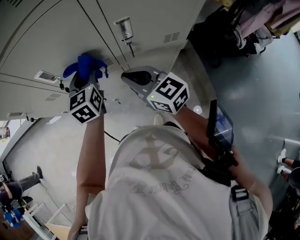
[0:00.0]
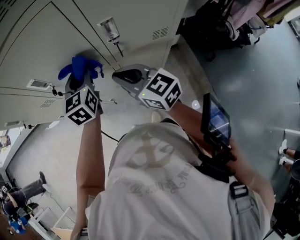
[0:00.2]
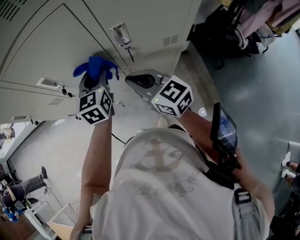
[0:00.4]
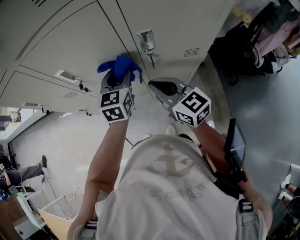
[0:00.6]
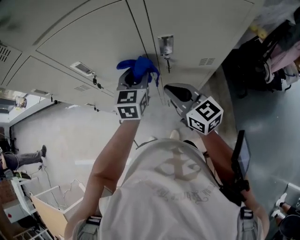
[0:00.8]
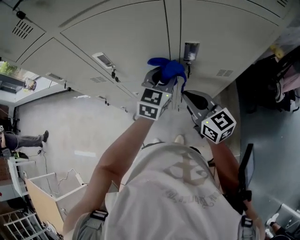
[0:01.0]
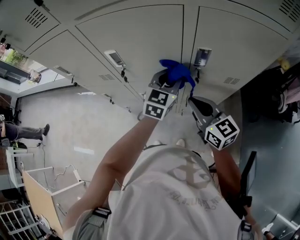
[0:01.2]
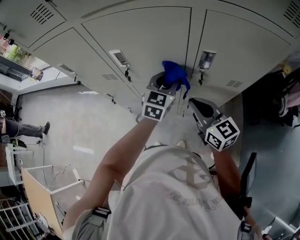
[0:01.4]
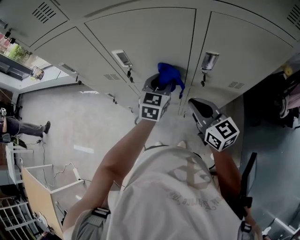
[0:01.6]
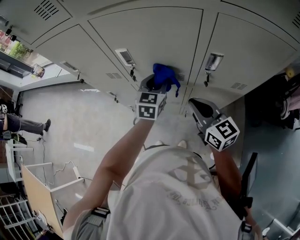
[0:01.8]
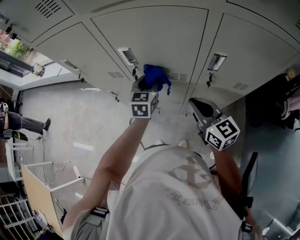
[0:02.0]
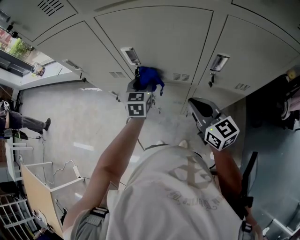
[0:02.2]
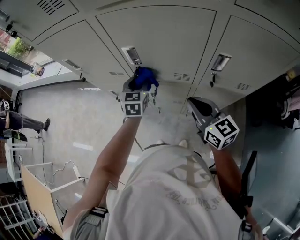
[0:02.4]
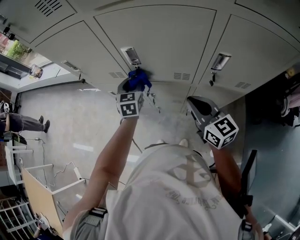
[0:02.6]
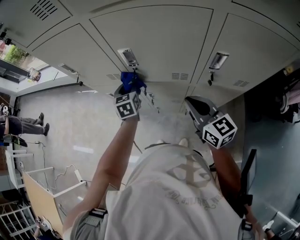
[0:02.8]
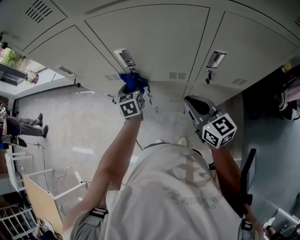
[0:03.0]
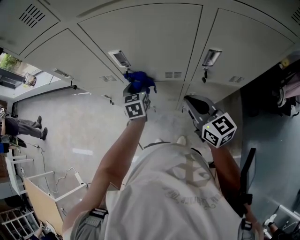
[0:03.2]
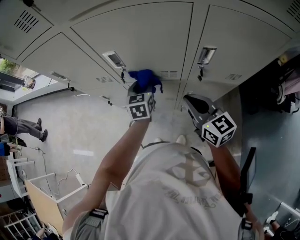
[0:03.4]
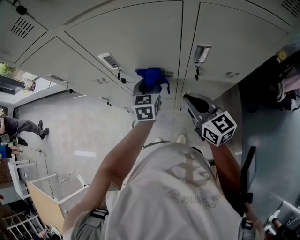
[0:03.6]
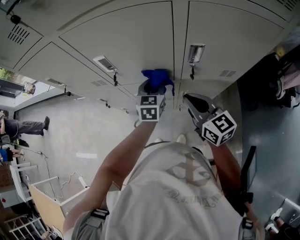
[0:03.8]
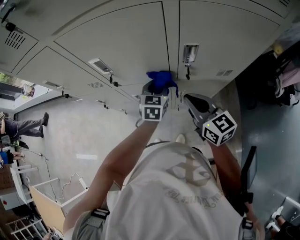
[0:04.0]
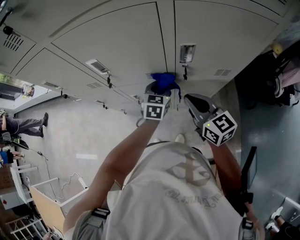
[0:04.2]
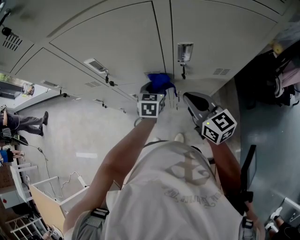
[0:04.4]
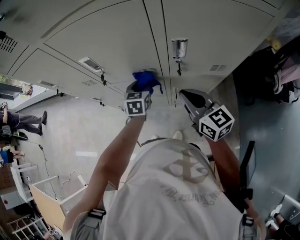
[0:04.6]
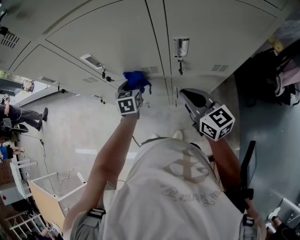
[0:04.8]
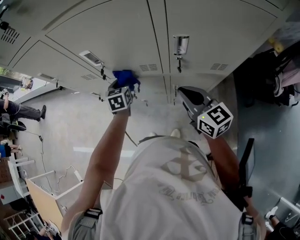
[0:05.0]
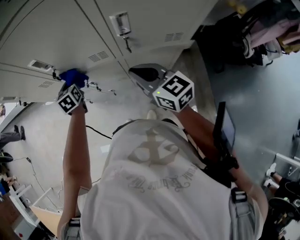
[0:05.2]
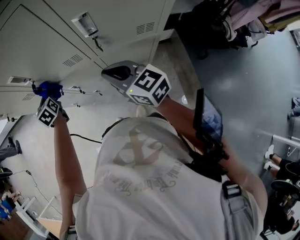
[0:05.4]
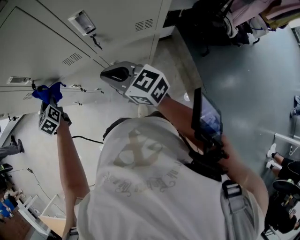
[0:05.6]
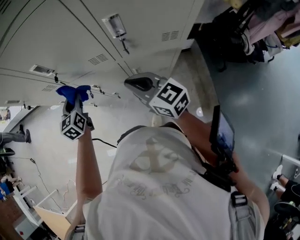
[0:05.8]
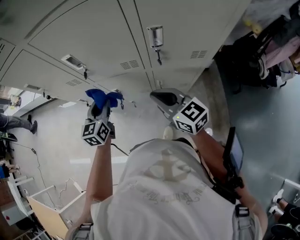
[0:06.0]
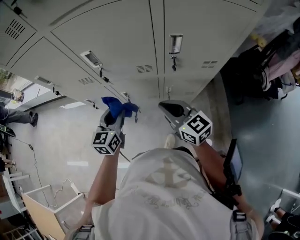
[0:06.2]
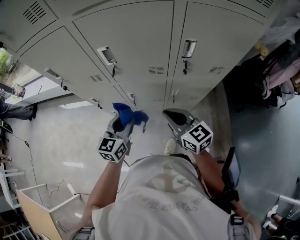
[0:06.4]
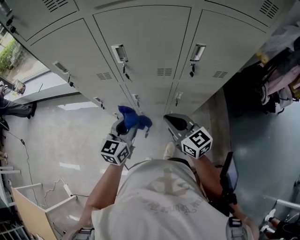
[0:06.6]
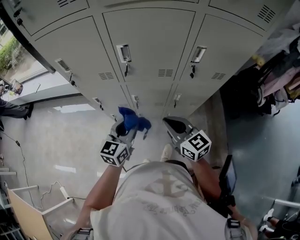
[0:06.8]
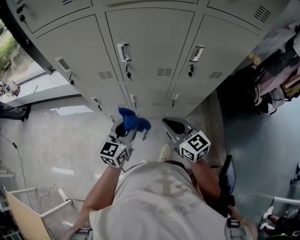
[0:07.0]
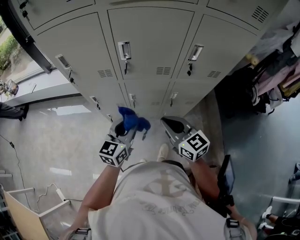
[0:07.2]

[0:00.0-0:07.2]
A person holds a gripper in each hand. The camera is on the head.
0.0 to 1.4 s: The left gripper travels to the right by approximately 5 cm.
1.4 to 2.8 s: The left gripper travels to the left by approximately 25 cm, and changes its angle by roughly 40 degrees. Meanwhile the right gripper moves to the left, some 5 cm.
2.8 to 4.4 s: The left gripper moves to the right, about 25 cm, and turns by some 30 degrees. The right gripper heads to the right, covering approximately 10 cm.
4.4 to 5.8 s: The left gripper moves to the left, about 20 cm, and swivels some 20 degrees; the right gripper changes place by roughly 5 cm.
5.8 to 7.2 s: The right gripper moves to the left and backward, roughly 15 cm; the left gripper heads backward, covering roughly 15 cm, and turns by approximately 30 degrees.

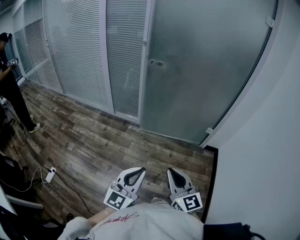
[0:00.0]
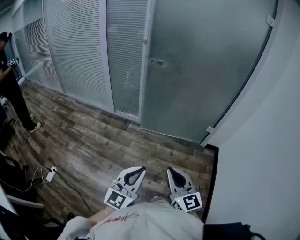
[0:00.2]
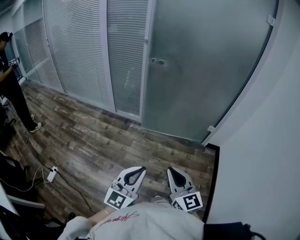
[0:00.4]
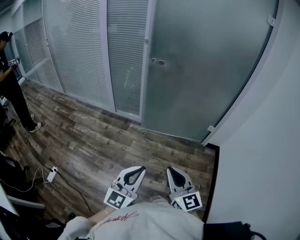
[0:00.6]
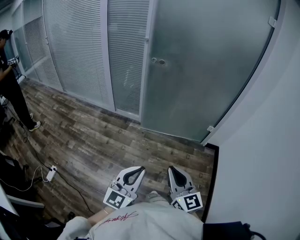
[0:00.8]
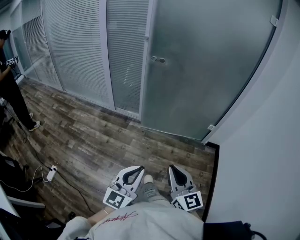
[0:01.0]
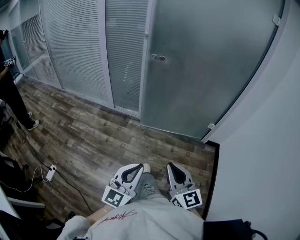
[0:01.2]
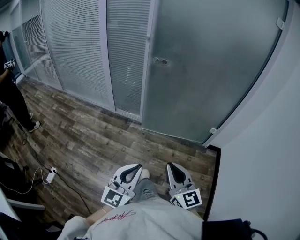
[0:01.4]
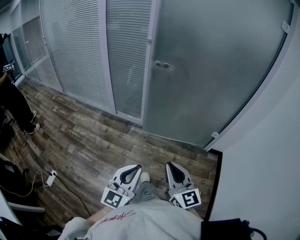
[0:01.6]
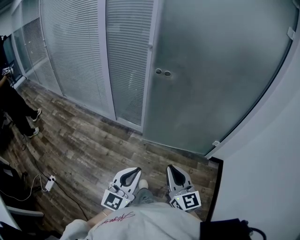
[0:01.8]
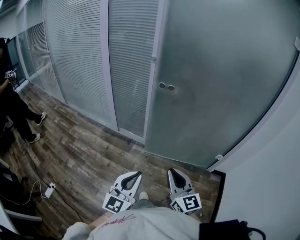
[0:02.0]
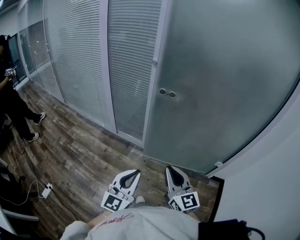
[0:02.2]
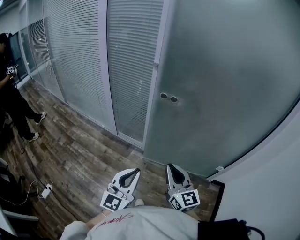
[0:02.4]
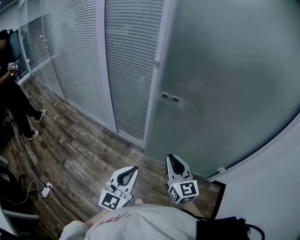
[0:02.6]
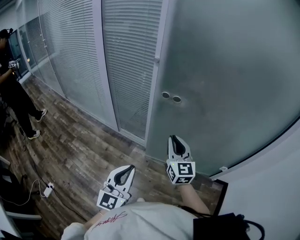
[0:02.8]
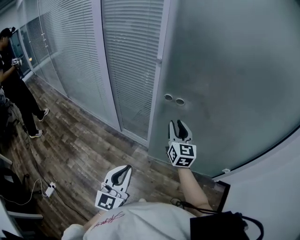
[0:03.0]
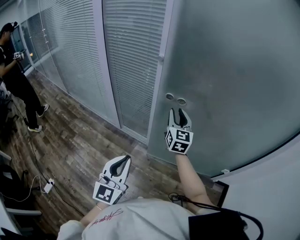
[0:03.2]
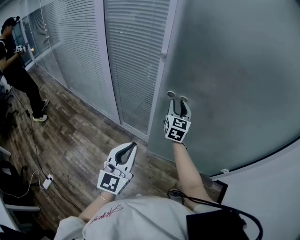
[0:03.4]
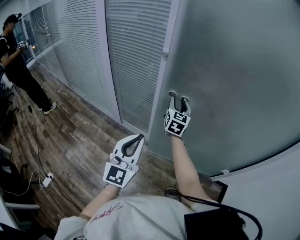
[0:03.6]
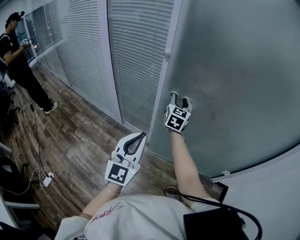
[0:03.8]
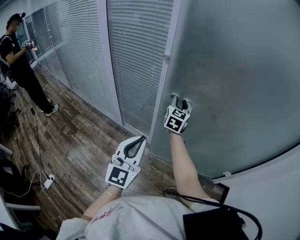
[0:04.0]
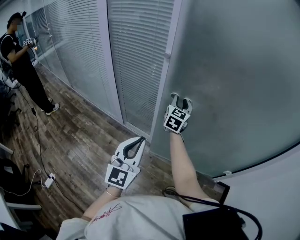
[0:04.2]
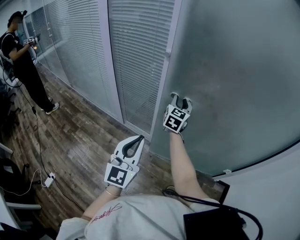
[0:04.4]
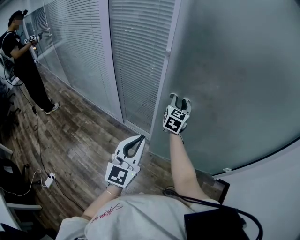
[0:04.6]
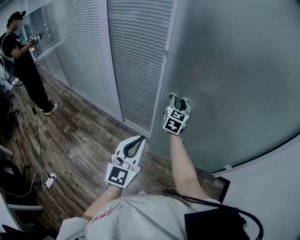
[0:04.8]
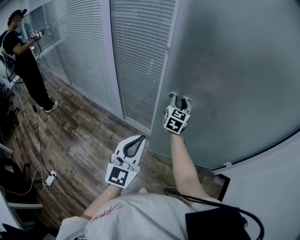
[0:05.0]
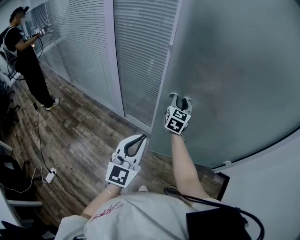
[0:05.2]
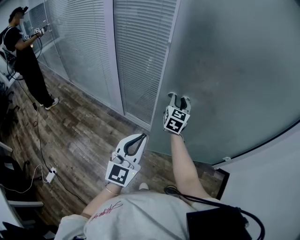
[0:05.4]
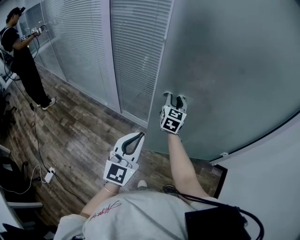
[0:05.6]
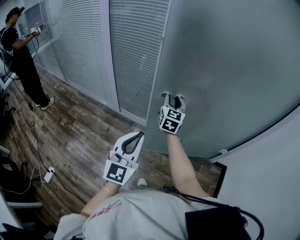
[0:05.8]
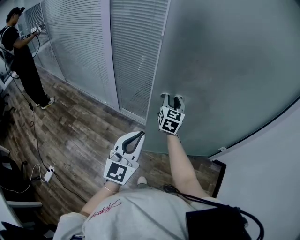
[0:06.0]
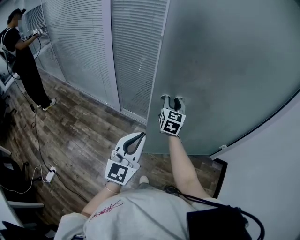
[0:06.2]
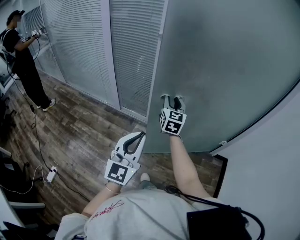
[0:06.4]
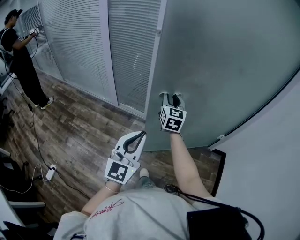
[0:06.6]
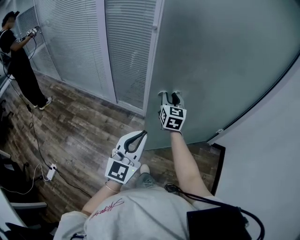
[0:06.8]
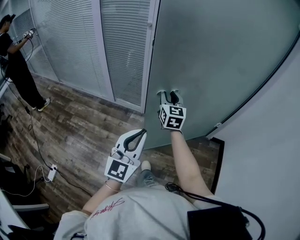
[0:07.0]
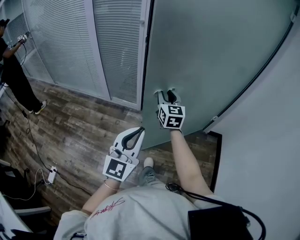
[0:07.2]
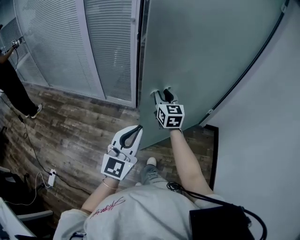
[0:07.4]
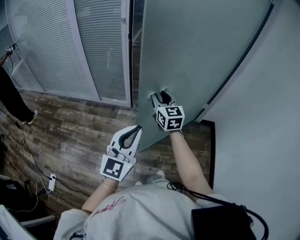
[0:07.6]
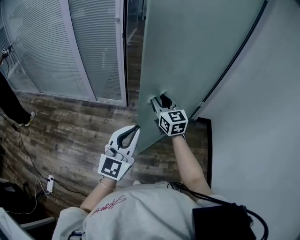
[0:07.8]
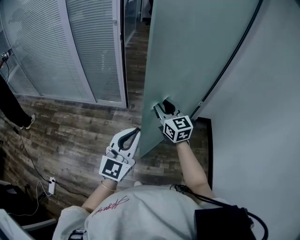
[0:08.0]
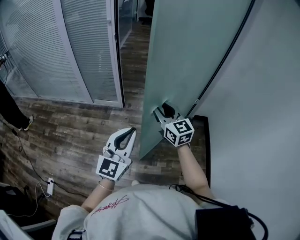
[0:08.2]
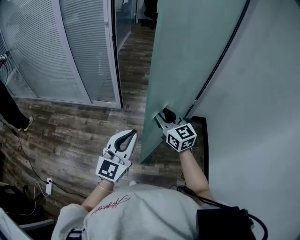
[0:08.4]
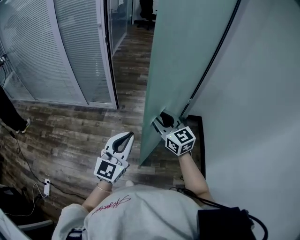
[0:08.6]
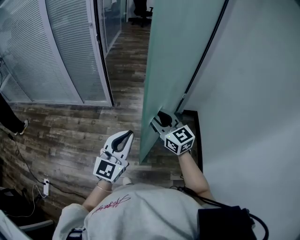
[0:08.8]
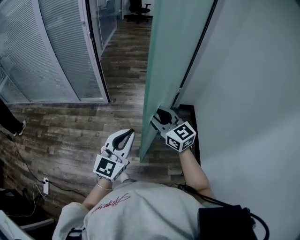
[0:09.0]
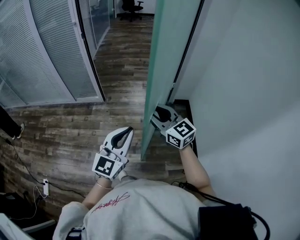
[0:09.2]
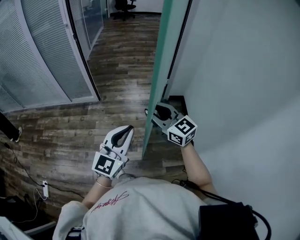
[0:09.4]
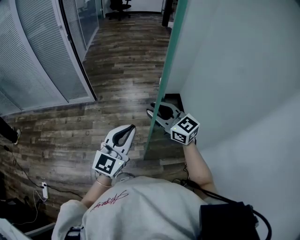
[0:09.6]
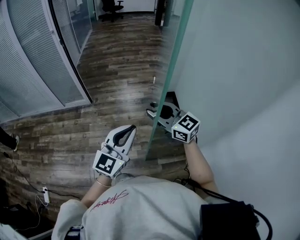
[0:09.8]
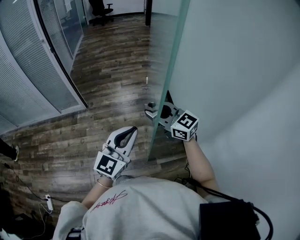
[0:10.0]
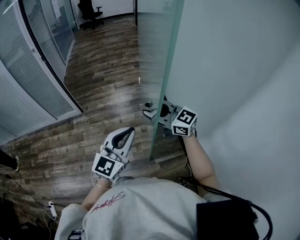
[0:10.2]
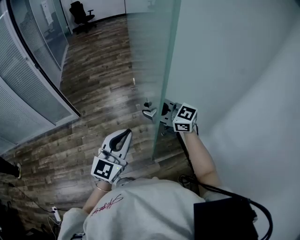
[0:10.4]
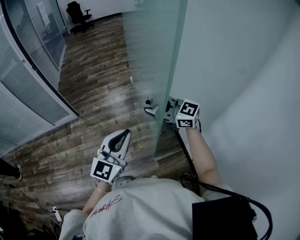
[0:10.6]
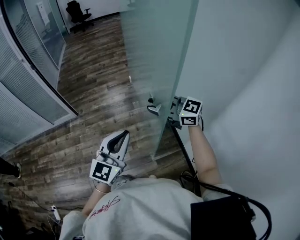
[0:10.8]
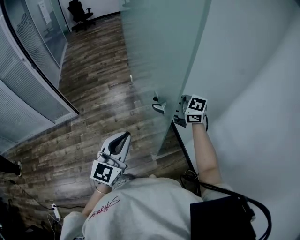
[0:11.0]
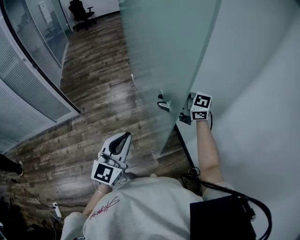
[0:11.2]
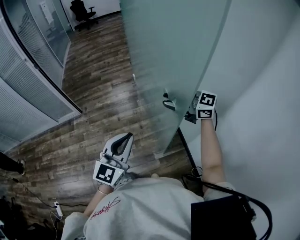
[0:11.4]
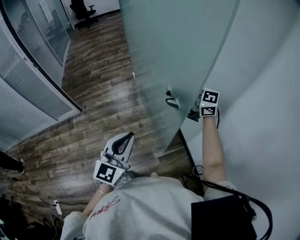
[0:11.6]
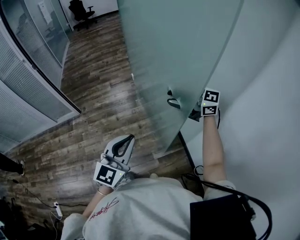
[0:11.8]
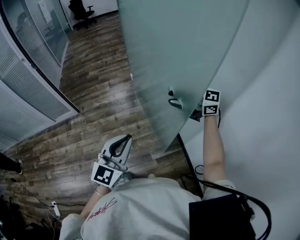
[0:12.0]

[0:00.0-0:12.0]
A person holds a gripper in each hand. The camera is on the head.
0.0 to 1.6 s: The two grippers go roughly 10 cm forward.
1.6 to 3.0 s: The left gripper goes some 30 cm forward, and swivels roughly 30 degrees. Meanwhile the right gripper heads forward, covering about 50 cm, and opens.
3.0 to 4.4 s: Both grippers travel together forward, about 10 cm.
4.4 to 6.0 s: Both grippers move backward, approximately 15 cm.
6.0 to 7.6 s: The left gripper travels backward and to the right by some 20 cm. Meanwhile the right gripper moves backward, some 25 cm.
7.6 to 9.0 s: The right gripper travels backward and to the right by some 30 cm; the left gripper heads to the right and backward, covering approximately 20 cm.
9.0 to 10.4 s: The right gripper heads to the right and backward, covering about 25 cm; the left gripper moves to the right, about 20 cm.
10.4 to 12.0 s: The right gripper heads to the right, covering about 15 cm. Meanwhile the left gripper ends up some 5 cm from where it was.

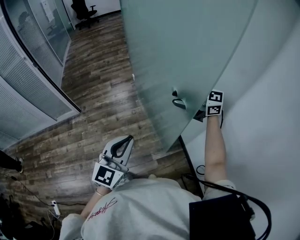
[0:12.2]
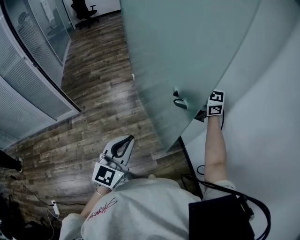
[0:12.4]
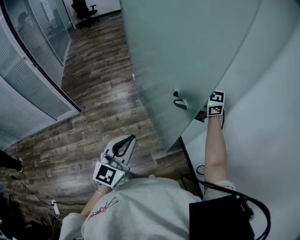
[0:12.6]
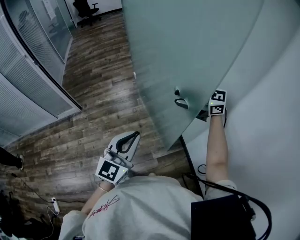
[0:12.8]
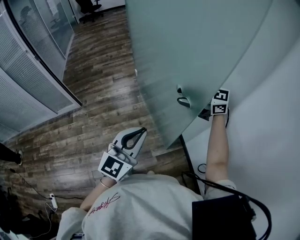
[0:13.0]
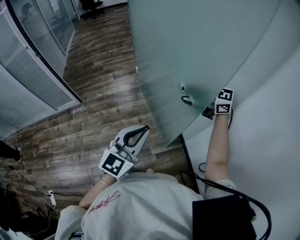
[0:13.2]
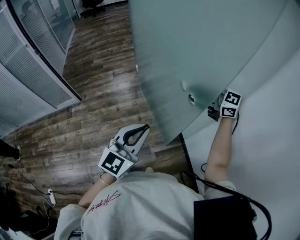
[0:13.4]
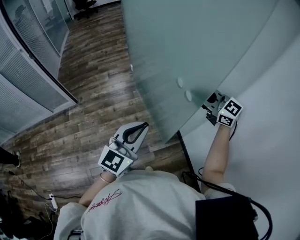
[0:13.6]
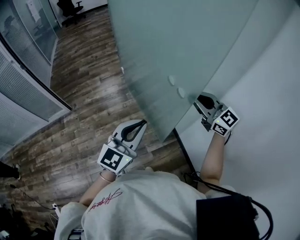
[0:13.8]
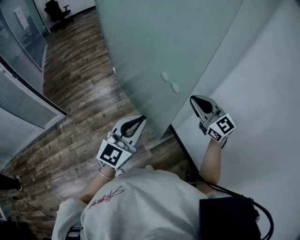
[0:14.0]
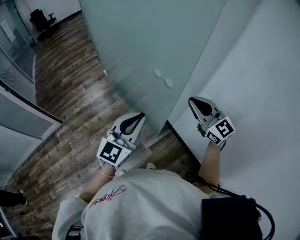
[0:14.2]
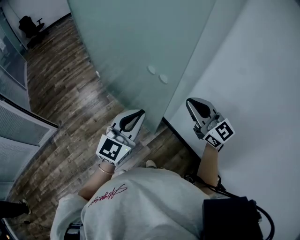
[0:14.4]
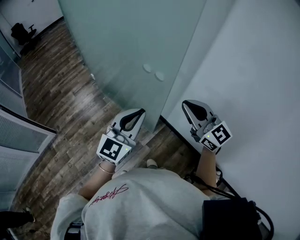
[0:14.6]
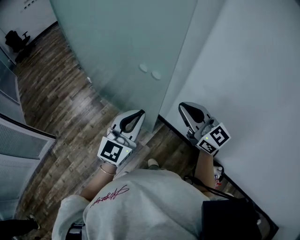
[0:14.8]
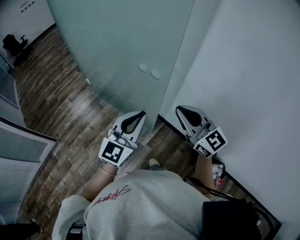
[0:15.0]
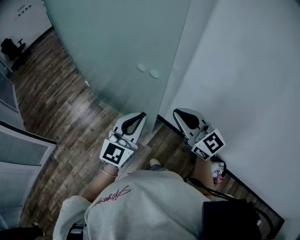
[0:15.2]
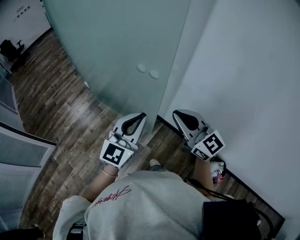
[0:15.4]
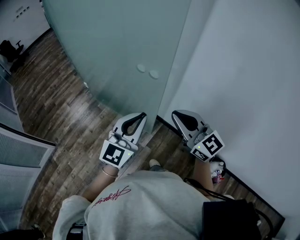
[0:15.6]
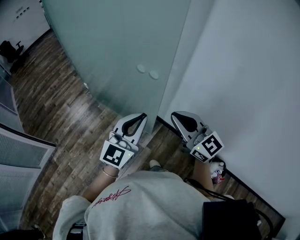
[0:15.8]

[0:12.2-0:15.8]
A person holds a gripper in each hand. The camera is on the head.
12.2 to 14.0 s: The left gripper shifts by some 10 cm. Meanwhile the right gripper changes place by some 15 cm, turns by roughly 50 degrees, and closes.
14.0 to 15.8 s: The left gripper swivels roughly 20 degrees. Meanwhile the right gripper moves backward, roughly 15 cm.

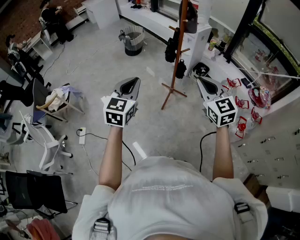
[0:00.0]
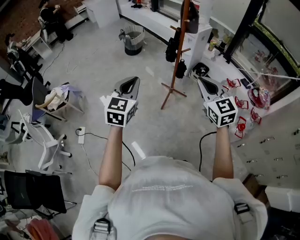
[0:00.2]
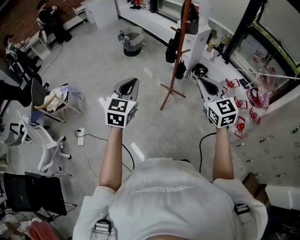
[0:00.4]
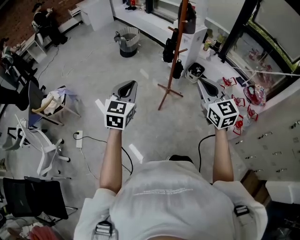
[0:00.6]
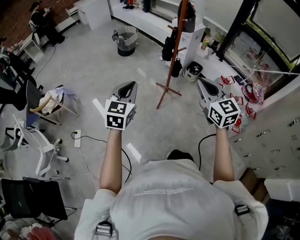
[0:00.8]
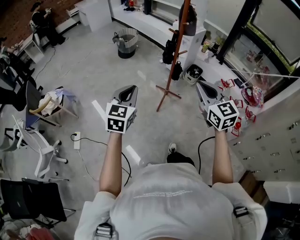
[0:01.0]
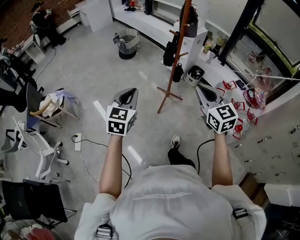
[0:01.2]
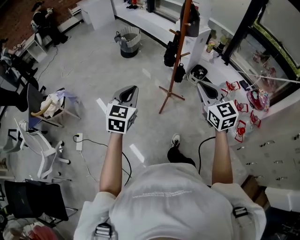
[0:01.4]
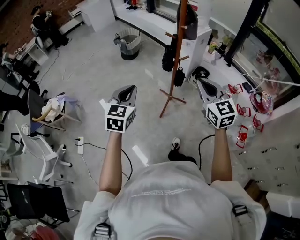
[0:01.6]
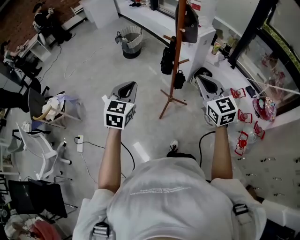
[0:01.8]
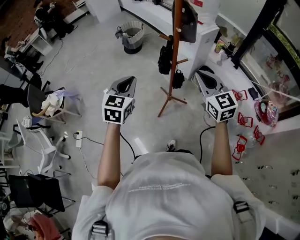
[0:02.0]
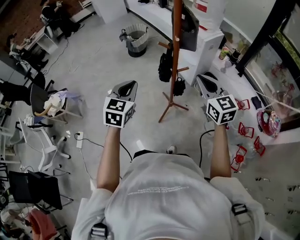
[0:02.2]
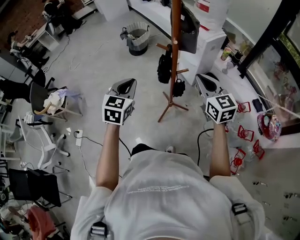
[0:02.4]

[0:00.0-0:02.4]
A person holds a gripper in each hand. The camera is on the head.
0.0 to 1.2 s: The left gripper moves roughly 5 cm.
1.2 to 2.4 s: The grippers both shift forward and to the right by approximately 30 cm.
